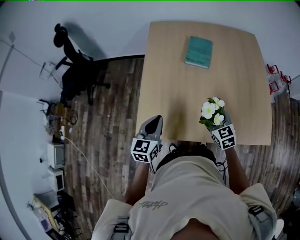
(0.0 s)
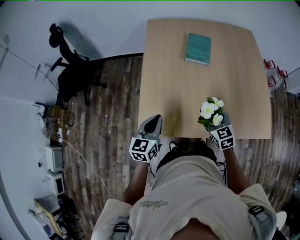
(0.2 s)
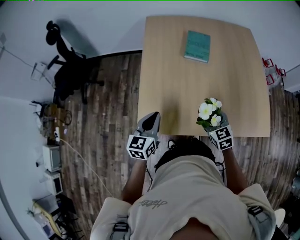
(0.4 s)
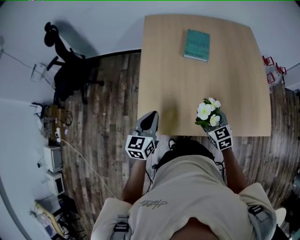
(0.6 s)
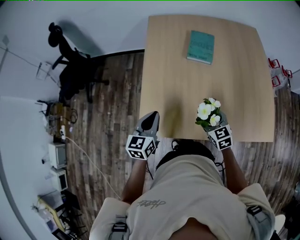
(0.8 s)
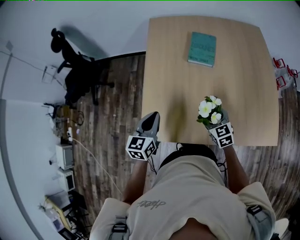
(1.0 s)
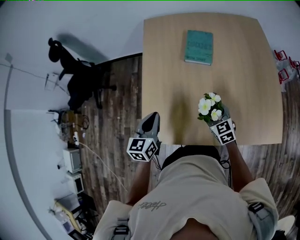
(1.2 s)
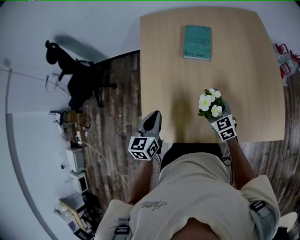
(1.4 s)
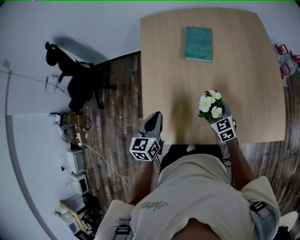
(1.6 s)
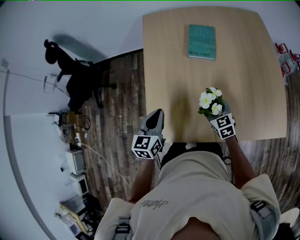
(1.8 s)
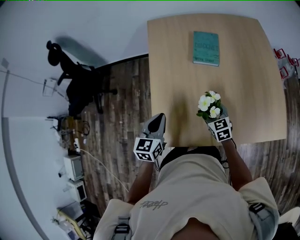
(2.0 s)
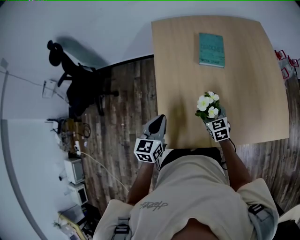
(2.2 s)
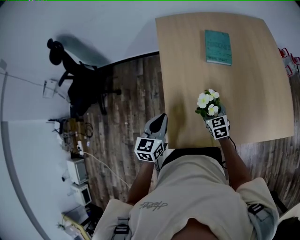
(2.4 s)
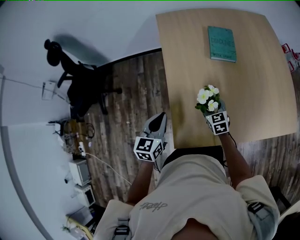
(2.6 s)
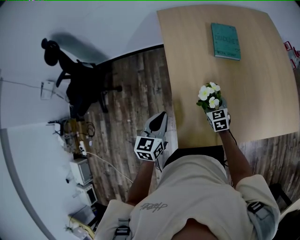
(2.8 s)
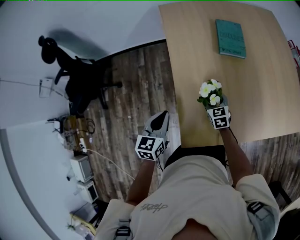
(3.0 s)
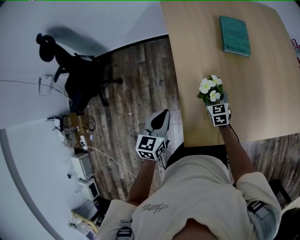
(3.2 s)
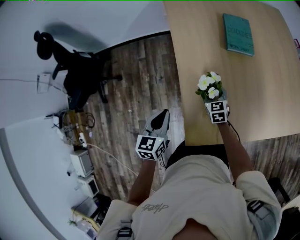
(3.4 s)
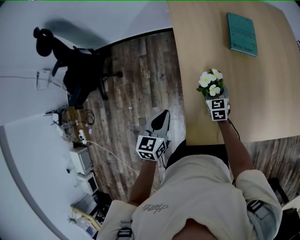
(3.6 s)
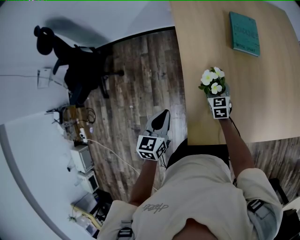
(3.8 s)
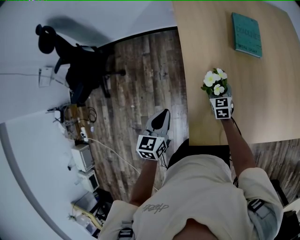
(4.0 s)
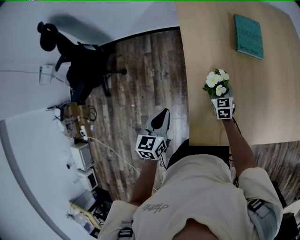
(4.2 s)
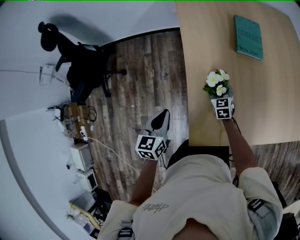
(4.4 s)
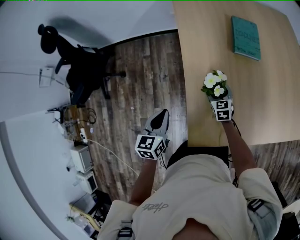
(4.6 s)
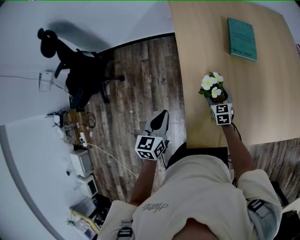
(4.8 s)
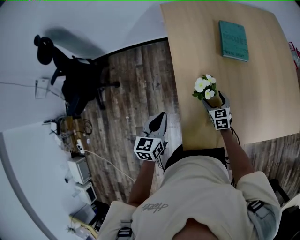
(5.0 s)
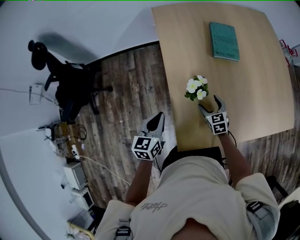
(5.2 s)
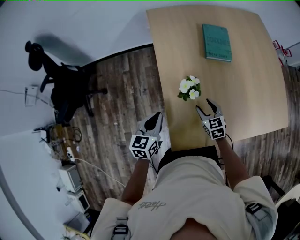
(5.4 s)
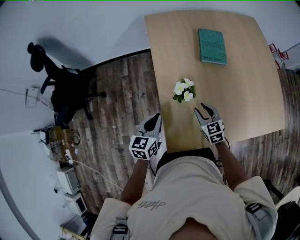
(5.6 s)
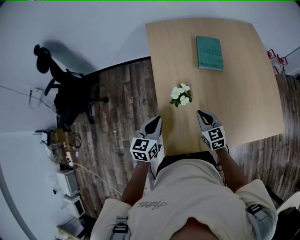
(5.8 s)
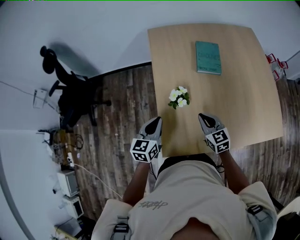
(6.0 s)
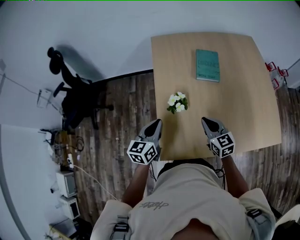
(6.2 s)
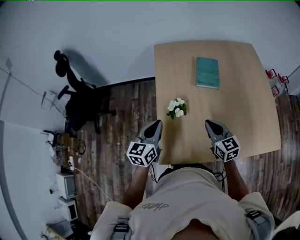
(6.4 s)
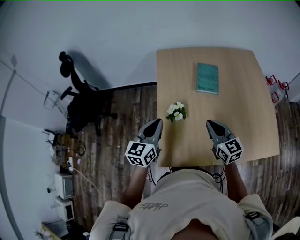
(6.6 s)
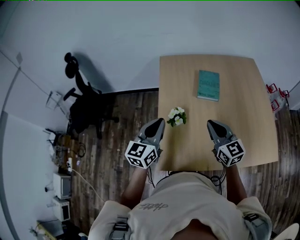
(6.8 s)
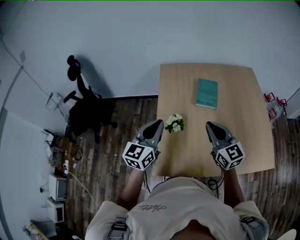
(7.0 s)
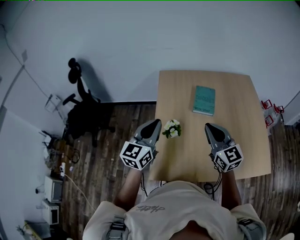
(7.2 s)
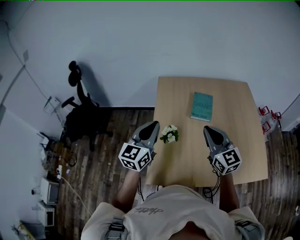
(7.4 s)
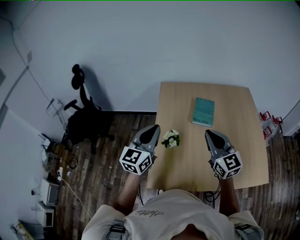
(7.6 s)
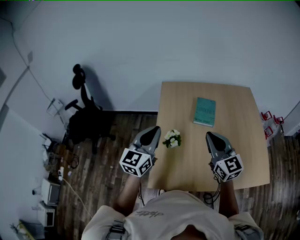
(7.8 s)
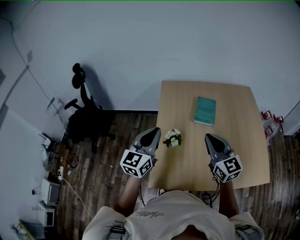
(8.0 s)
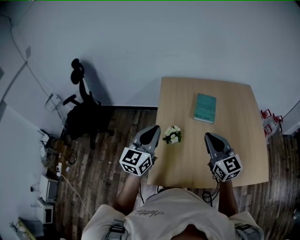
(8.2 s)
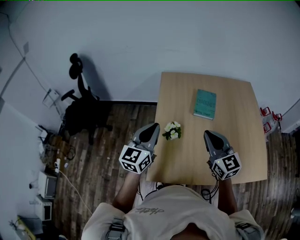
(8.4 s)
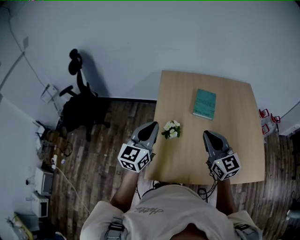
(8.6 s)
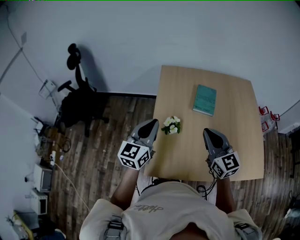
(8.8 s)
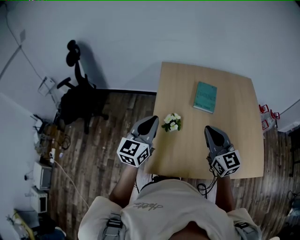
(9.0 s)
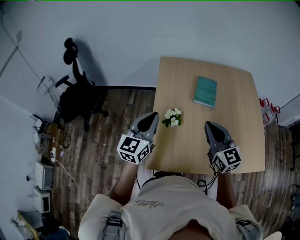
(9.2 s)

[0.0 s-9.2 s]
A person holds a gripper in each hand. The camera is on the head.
0.0 to 1.6 s: The left gripper goes about 10 cm forward; the right gripper heads forward and downward, covering roughly 10 cm.
1.6 to 3.0 s: The grippers both shift to the left by roughly 20 cm.
3.0 to 4.6 s: The right gripper ends up approximately 5 cm from where it was, while the left gripper travels to the left by roughly 5 cm.
4.6 to 6.2 s: The left gripper travels to the right and upward by some 15 cm. The right gripper shifts roughly 25 cm upward, backward and to the right, rotates approximately 20 degrees, and closes its fingers.
6.2 to 7.6 s: The two grippers go about 20 cm upward. The left gripper rotates about 20 degrees. Meanwhile the right gripper rotates approximately 30 degrees.
7.6 to 9.2 s: The left gripper shifts by approximately 5 cm.

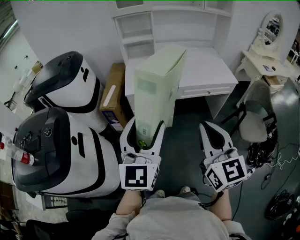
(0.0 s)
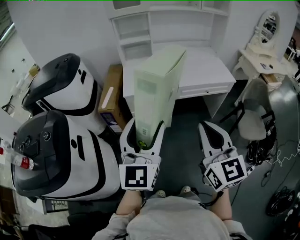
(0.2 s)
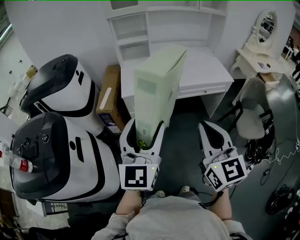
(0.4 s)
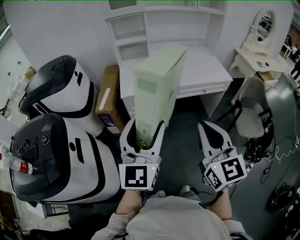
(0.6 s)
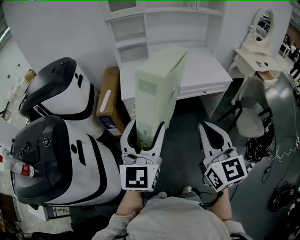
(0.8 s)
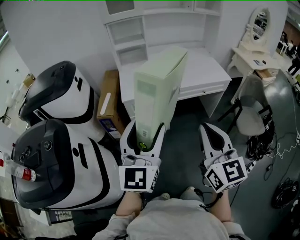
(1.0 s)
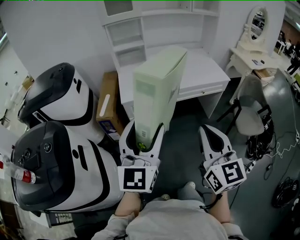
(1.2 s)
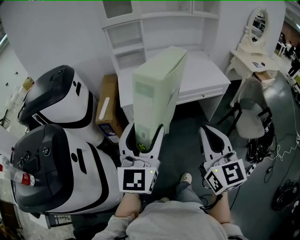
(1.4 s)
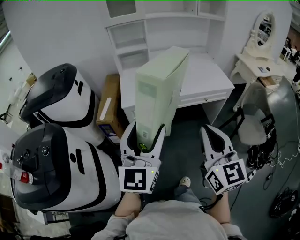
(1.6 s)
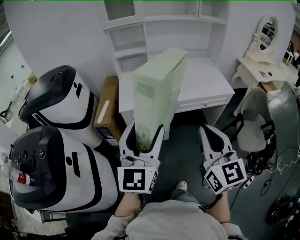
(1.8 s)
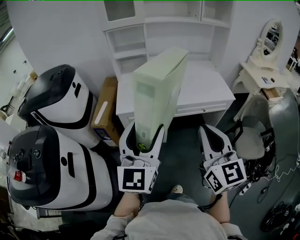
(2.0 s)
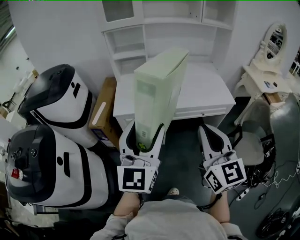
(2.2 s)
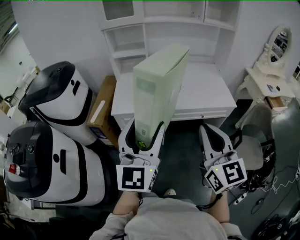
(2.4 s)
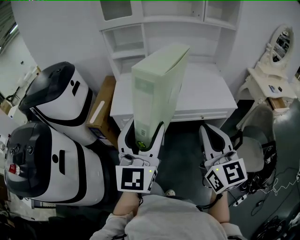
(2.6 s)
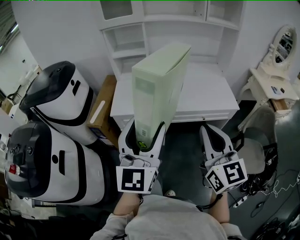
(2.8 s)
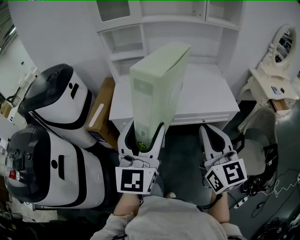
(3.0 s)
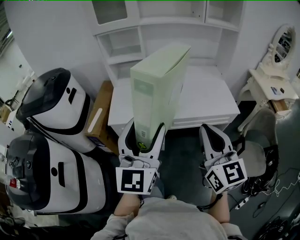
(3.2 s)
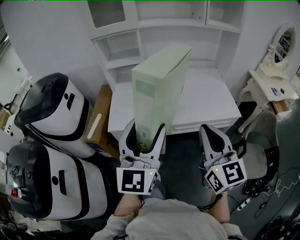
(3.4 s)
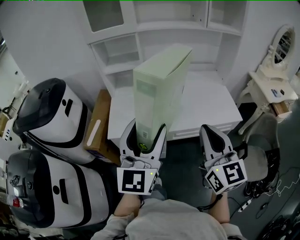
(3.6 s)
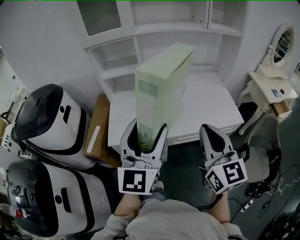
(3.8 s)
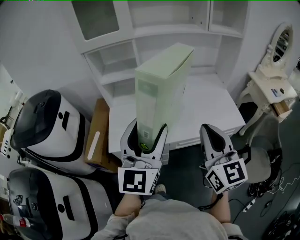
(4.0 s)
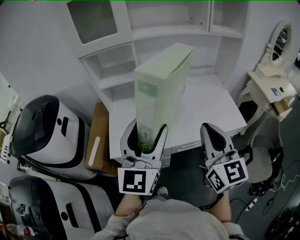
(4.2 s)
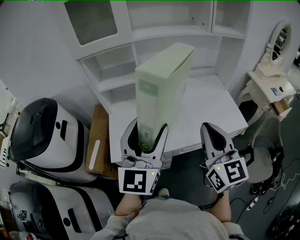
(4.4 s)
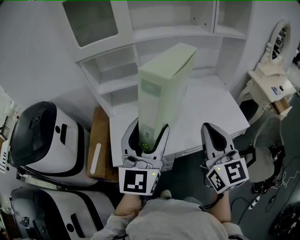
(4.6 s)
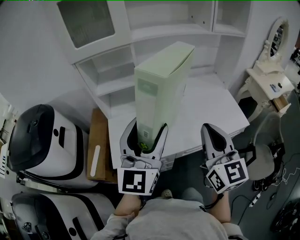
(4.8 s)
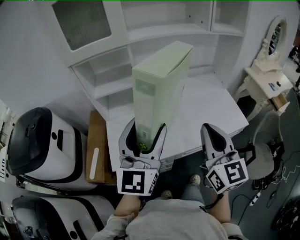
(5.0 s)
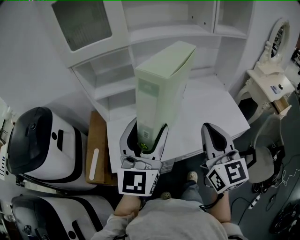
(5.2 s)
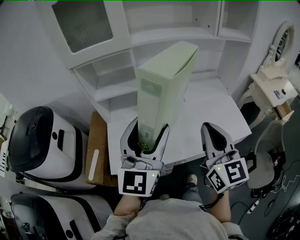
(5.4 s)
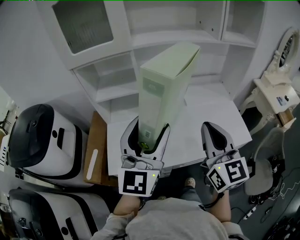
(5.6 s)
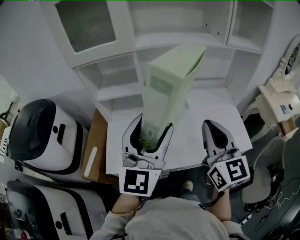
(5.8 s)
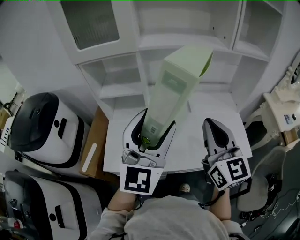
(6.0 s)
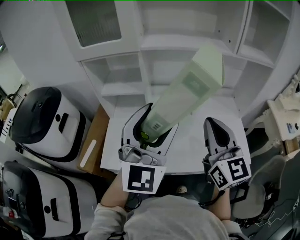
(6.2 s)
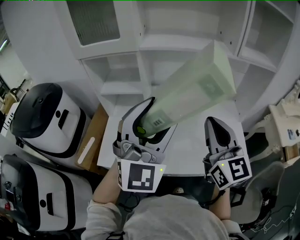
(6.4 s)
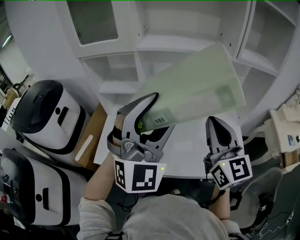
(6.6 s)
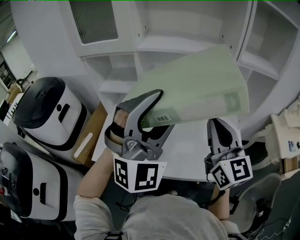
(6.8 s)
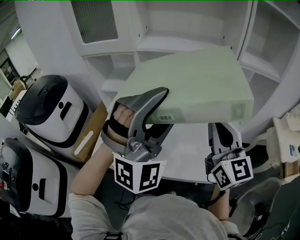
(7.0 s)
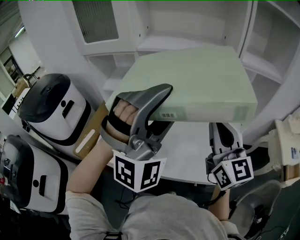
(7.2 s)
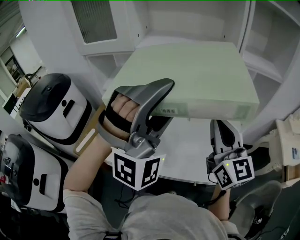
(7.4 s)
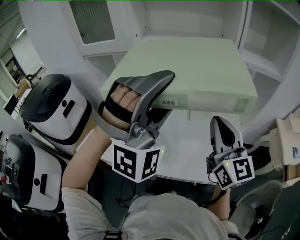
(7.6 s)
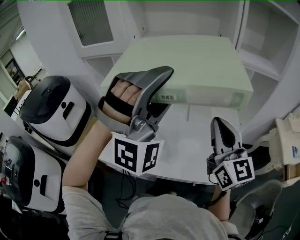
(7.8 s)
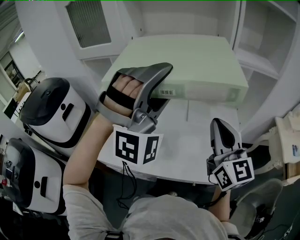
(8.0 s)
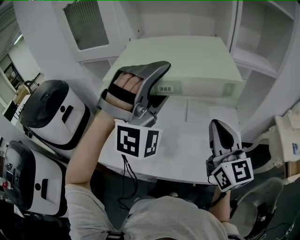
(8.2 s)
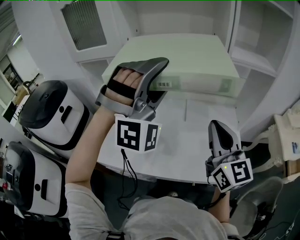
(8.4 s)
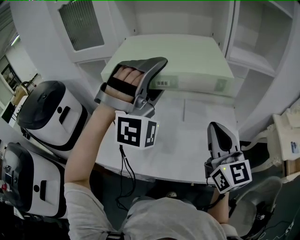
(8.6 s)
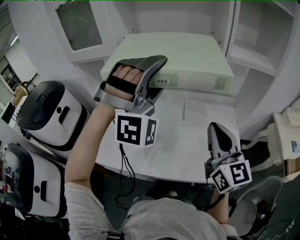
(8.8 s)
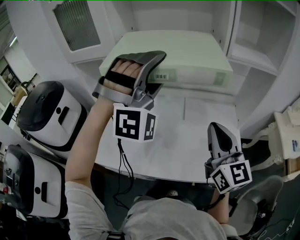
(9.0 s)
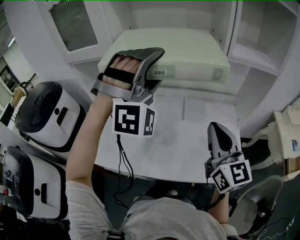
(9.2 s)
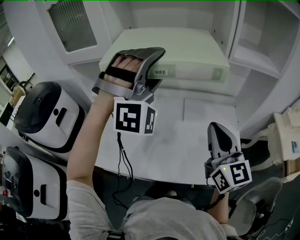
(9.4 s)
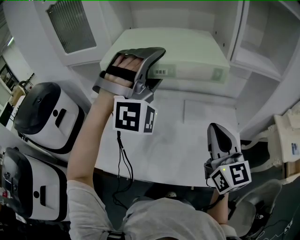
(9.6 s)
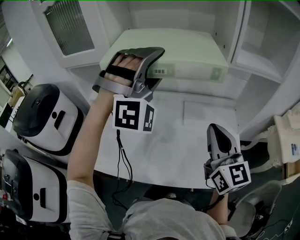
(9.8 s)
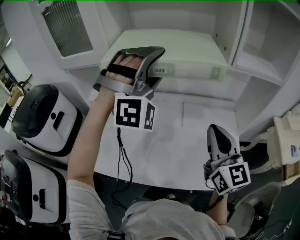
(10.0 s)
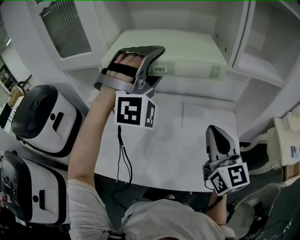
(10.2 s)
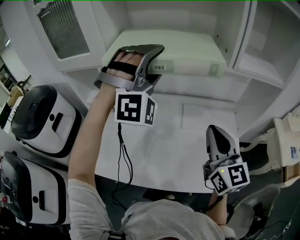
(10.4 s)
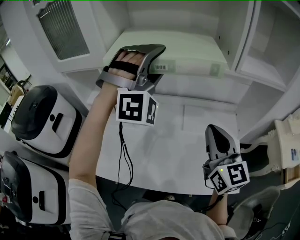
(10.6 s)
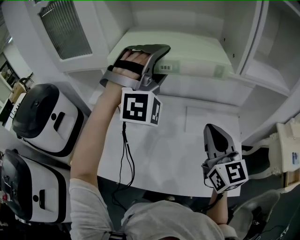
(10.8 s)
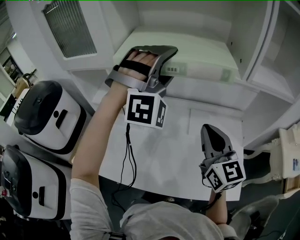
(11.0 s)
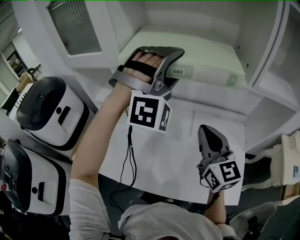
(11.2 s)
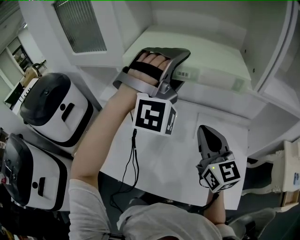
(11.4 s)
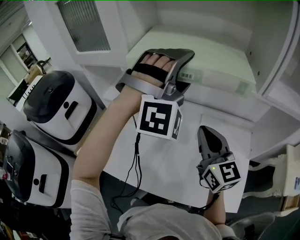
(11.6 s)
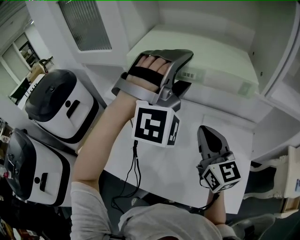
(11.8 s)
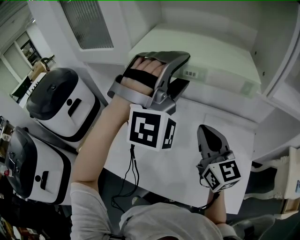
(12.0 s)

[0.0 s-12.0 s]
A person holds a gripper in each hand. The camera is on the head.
0.0 to 1.6 s: The grippers make only small movements.
1.6 to 3.0 s: Both grippers travel together forward and to the right, some 20 cm.
3.0 to 4.4 s: Both grippers travel together forward, about 25 cm.
4.4 to 6.0 s: The grippers both shift forward by roughly 15 cm.
6.0 to 7.6 s: The left gripper travels to the right and upward by roughly 15 cm, and rotates around the line of its fingers by some 70 degrees, clockwise from behind. Meanwhile the right gripper heads to the right and forward, covering roughly 15 cm.
7.6 to 9.0 s: The left gripper moves forward, some 10 cm.
9.0 to 10.4 s: The right gripper is displaced forward by approximately 5 cm, while the left gripper travels forward by some 10 cm.
10.4 to 12.0 s: The right gripper shifts roughly 10 cm forward and to the left.

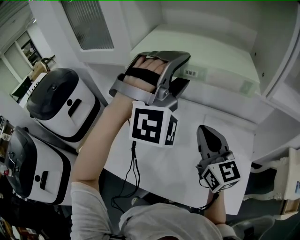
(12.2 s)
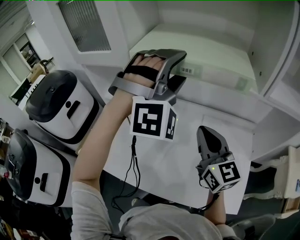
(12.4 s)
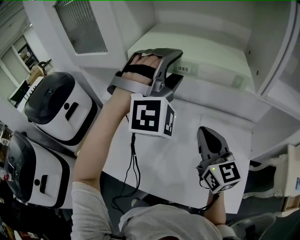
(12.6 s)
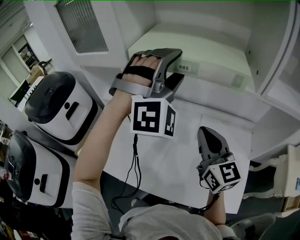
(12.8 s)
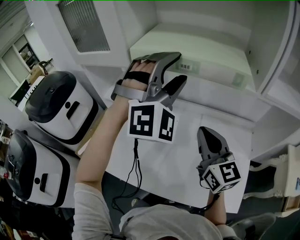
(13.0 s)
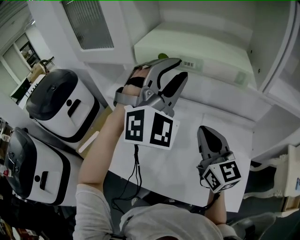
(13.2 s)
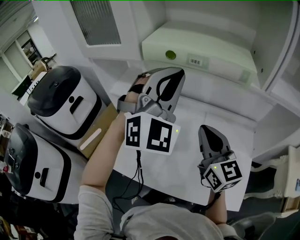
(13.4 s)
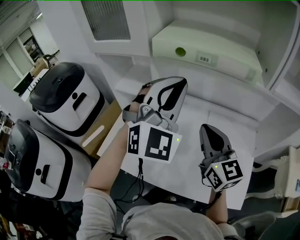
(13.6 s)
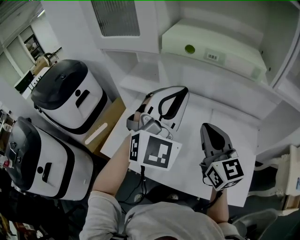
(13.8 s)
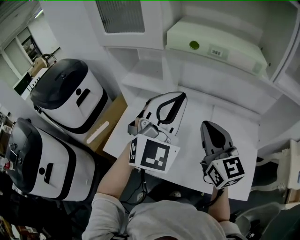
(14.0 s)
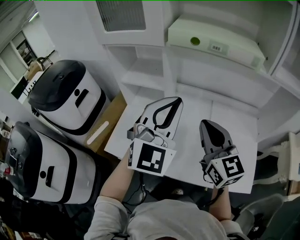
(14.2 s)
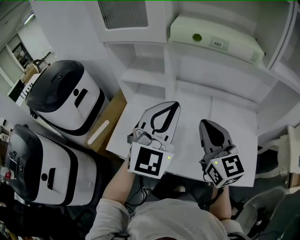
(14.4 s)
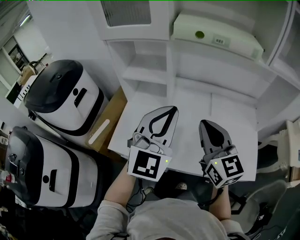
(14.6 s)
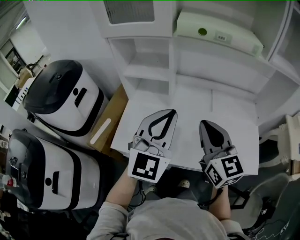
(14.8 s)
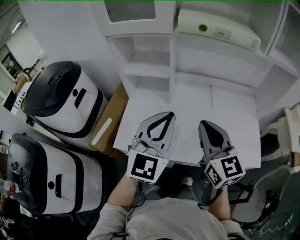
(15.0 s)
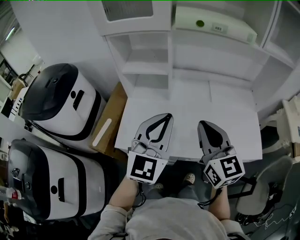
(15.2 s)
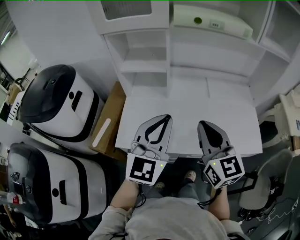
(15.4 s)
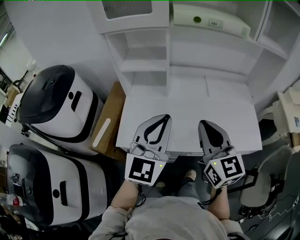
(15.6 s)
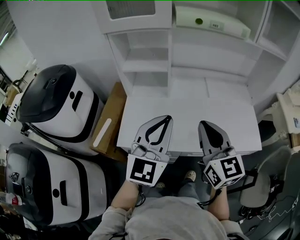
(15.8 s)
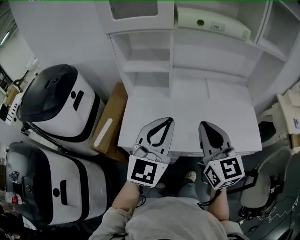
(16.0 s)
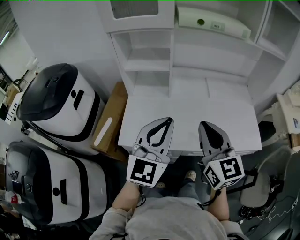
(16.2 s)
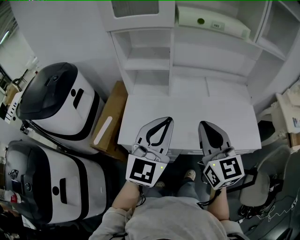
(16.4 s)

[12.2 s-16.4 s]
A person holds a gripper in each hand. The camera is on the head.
12.2 to 13.6 s: The left gripper travels backward and to the left by approximately 10 cm, rotates approximately 40 degrees, and closes.
13.6 to 15.0 s: The right gripper moves backward and to the left, approximately 20 cm. Meanwhile the left gripper shifts approximately 25 cm backward, to the left and downward, and rotates approximately 30 degrees.
15.0 to 16.4 s: The grippers both shift backward by roughly 10 cm.
